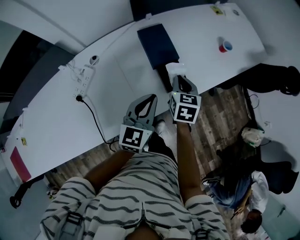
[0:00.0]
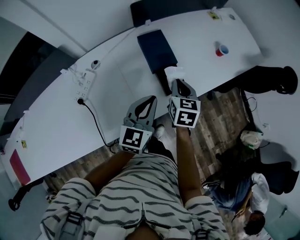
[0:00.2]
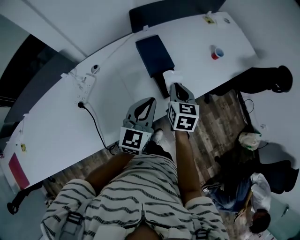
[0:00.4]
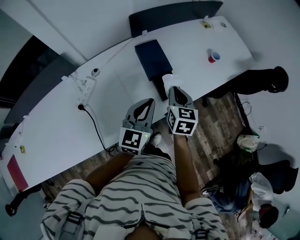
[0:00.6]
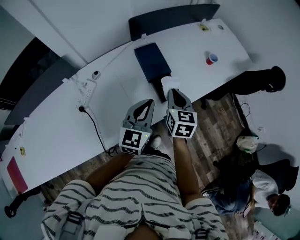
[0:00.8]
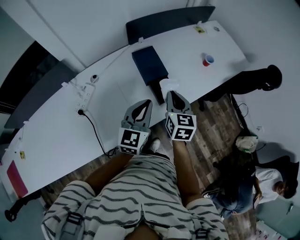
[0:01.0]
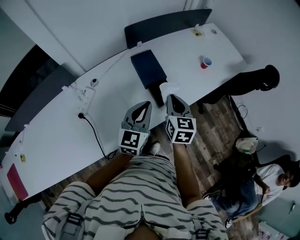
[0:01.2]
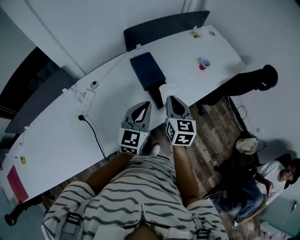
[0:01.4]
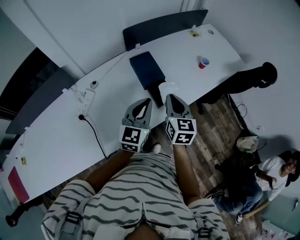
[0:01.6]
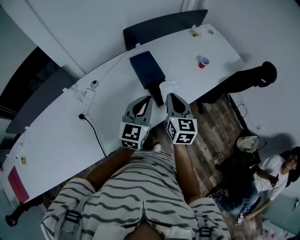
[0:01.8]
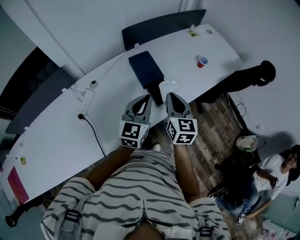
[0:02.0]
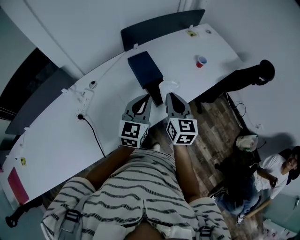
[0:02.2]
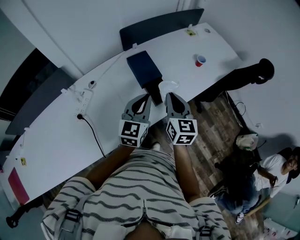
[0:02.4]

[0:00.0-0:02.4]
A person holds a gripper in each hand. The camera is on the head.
0.0 to 1.2 s: The left gripper travels upward by approximately 5 cm. The right gripper heads upward and backward, covering about 10 cm.
1.2 to 2.4 s: The grippers move only a little.

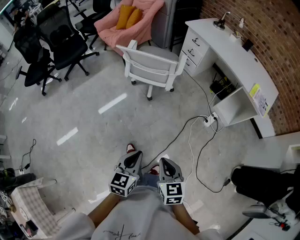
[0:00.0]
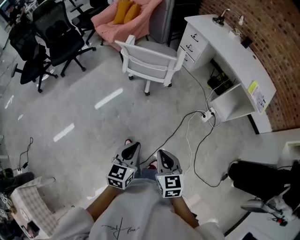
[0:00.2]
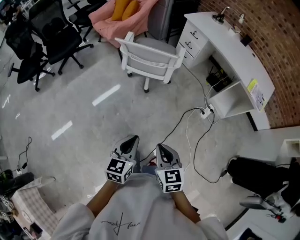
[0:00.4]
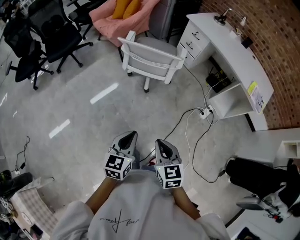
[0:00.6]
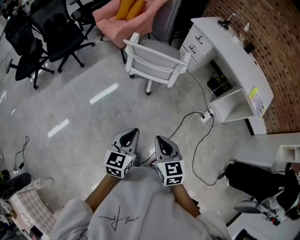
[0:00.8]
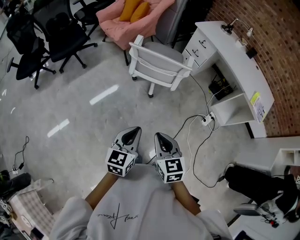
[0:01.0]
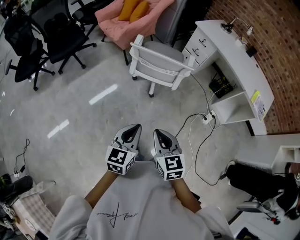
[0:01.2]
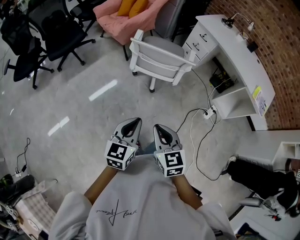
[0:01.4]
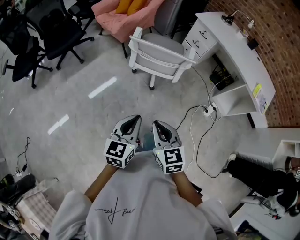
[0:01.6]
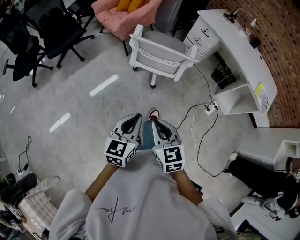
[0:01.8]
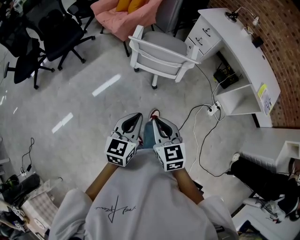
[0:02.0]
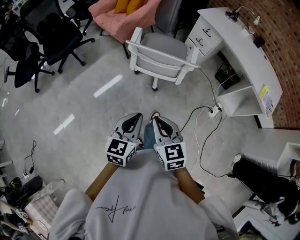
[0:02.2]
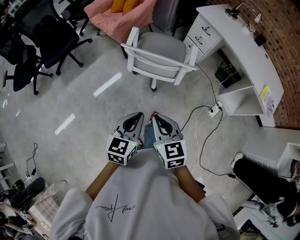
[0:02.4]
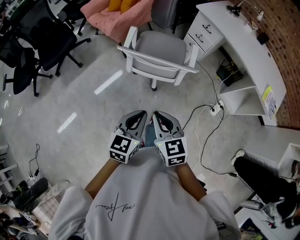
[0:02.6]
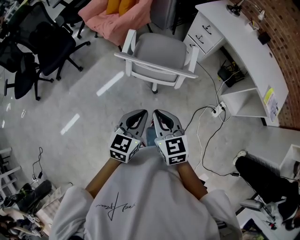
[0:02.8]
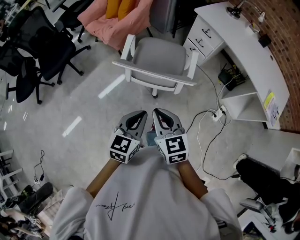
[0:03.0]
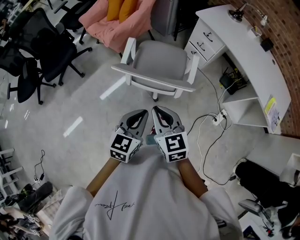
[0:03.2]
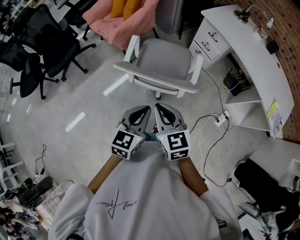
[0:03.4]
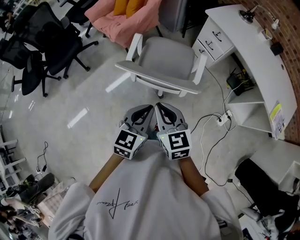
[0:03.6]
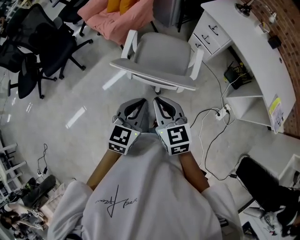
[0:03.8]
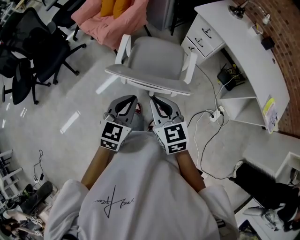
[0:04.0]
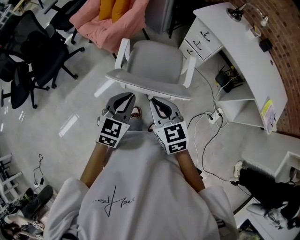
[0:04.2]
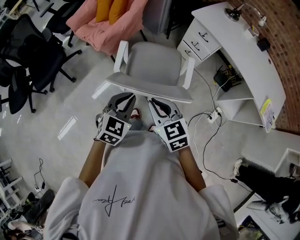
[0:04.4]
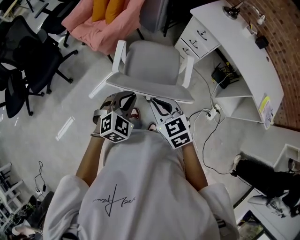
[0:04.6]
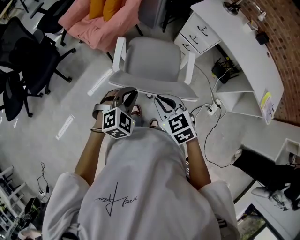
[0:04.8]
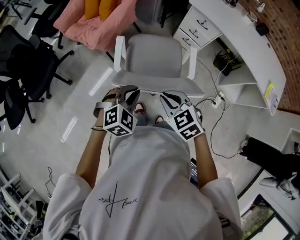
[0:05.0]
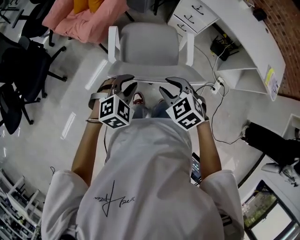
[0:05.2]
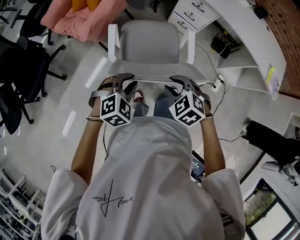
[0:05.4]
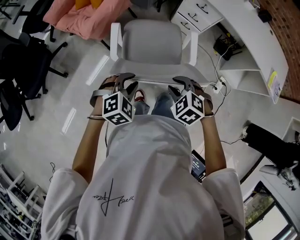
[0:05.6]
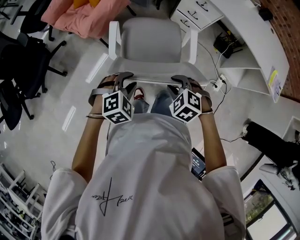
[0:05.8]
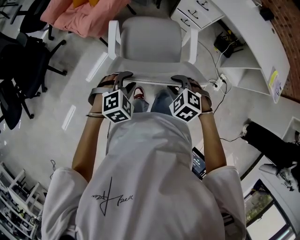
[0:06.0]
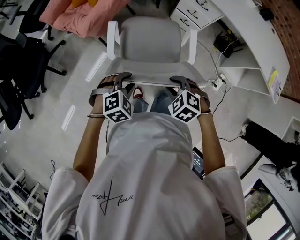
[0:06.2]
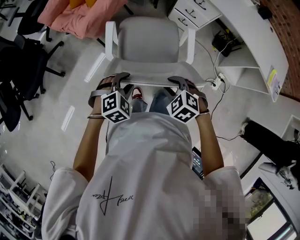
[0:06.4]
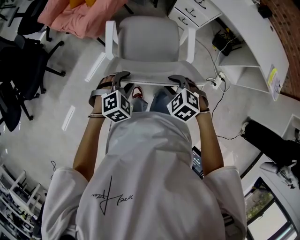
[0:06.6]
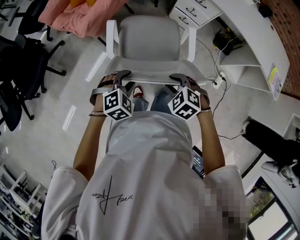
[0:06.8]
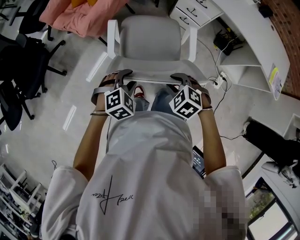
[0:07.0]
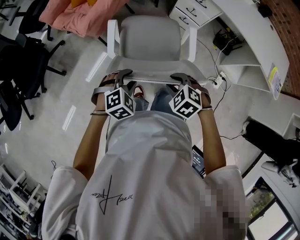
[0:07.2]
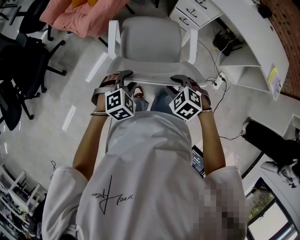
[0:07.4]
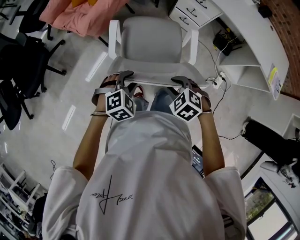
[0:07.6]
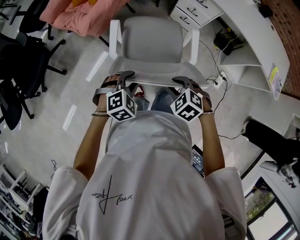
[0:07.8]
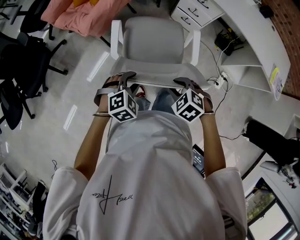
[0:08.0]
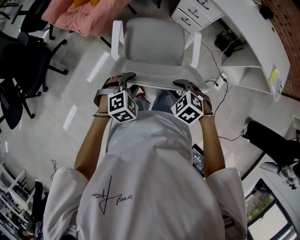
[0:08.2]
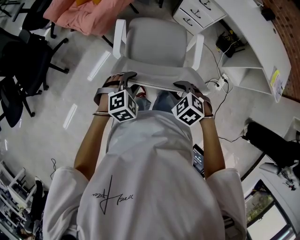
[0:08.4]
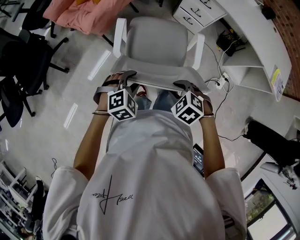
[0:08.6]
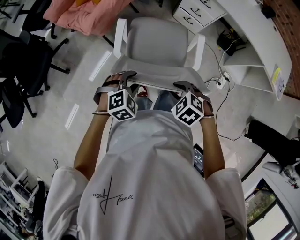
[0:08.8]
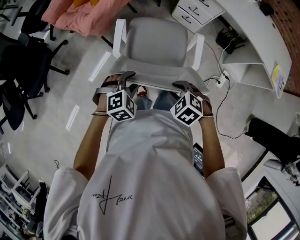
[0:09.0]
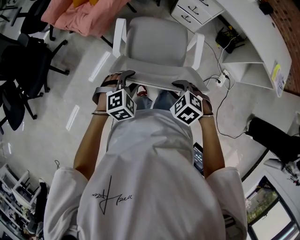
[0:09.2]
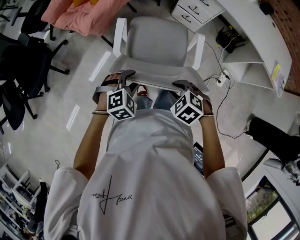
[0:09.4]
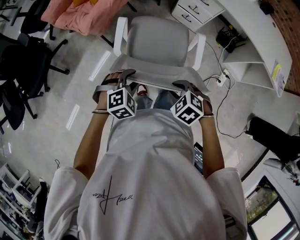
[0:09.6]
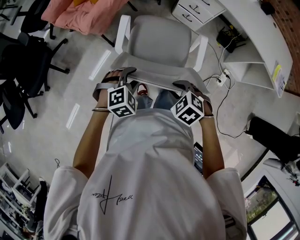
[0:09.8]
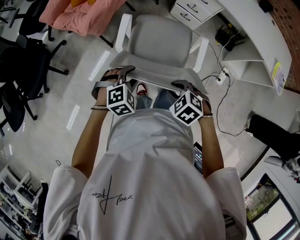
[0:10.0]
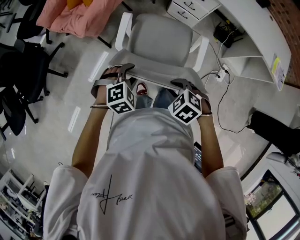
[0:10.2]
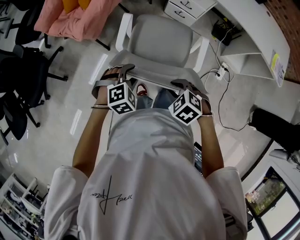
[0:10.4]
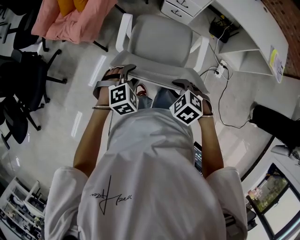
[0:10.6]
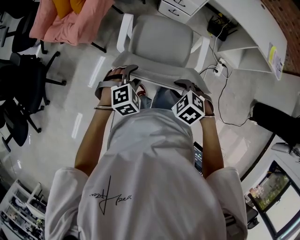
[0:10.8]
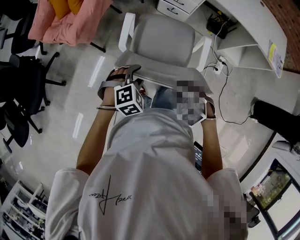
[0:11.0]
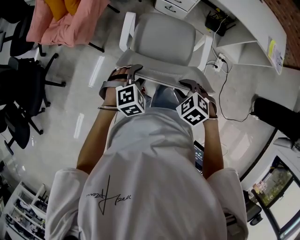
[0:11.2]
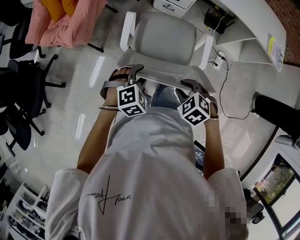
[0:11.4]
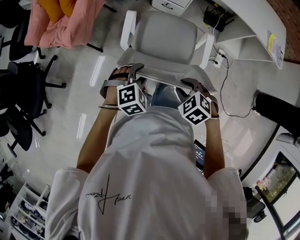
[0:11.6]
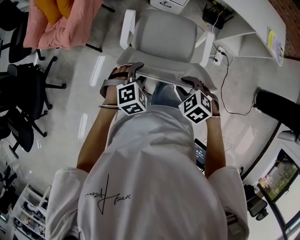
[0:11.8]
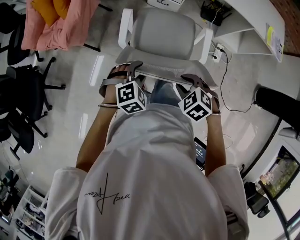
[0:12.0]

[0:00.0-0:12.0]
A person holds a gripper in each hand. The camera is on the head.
0.0 to 1.6 s: The right gripper travels to the left and forward by roughly 30 cm. Meanwhile the left gripper is displaced forward and to the left by roughly 25 cm.
1.6 to 3.0 s: The two grippers go about 25 cm forward.
3.0 to 4.4 s: The grippers both shift forward by approximately 15 cm. The left gripper swivels roughly 30 degrees.
4.4 to 6.0 s: Both grippers move downward, roughly 15 cm. The left gripper rotates approximately 40 degrees, and opens up. The right gripper points its fingers roughly 40 degrees further downward, and opens its fingers.
6.0 to 10.4 s: The grippers move only a little.
10.4 to 12.0 s: Both grippers move to the right, some 10 cm.

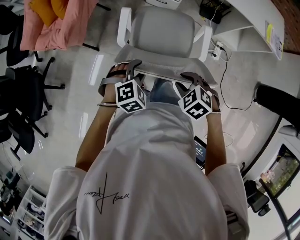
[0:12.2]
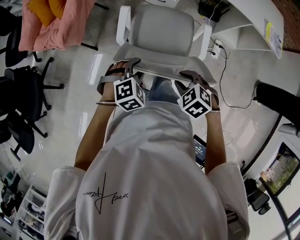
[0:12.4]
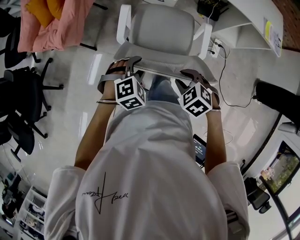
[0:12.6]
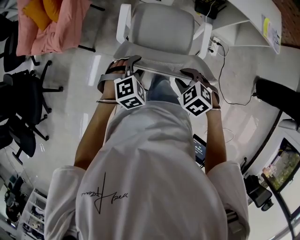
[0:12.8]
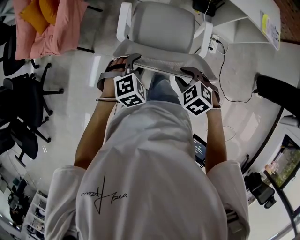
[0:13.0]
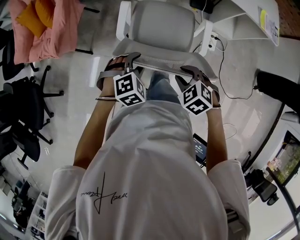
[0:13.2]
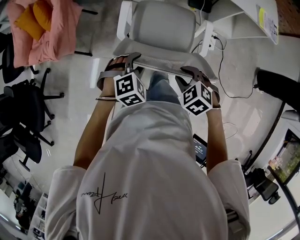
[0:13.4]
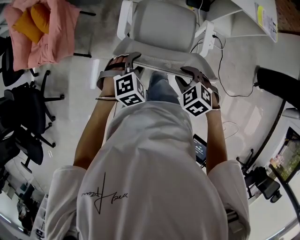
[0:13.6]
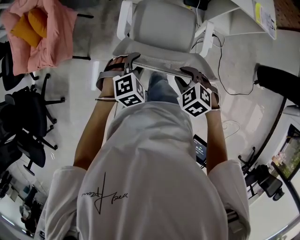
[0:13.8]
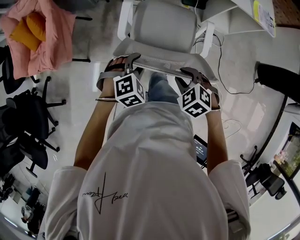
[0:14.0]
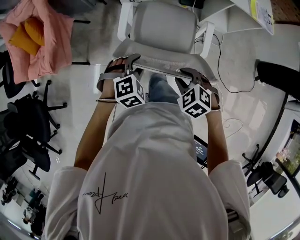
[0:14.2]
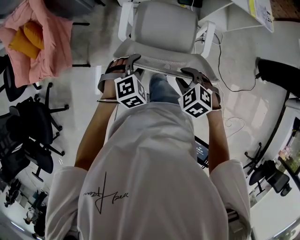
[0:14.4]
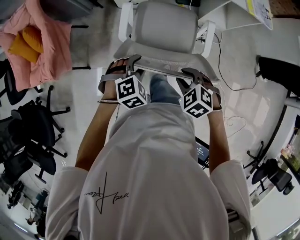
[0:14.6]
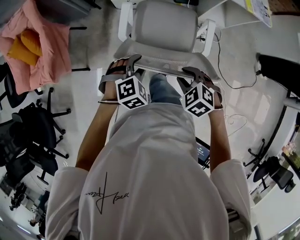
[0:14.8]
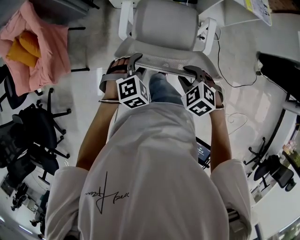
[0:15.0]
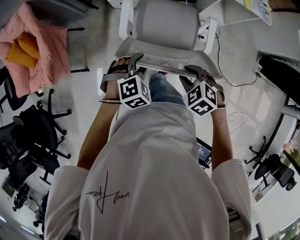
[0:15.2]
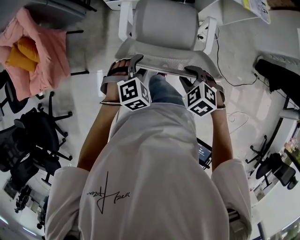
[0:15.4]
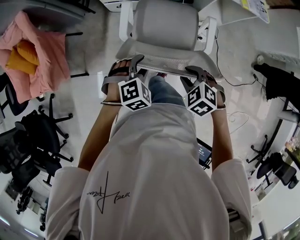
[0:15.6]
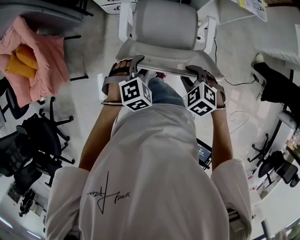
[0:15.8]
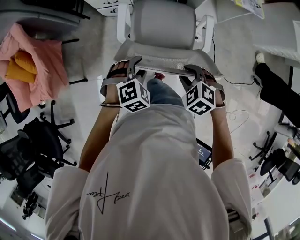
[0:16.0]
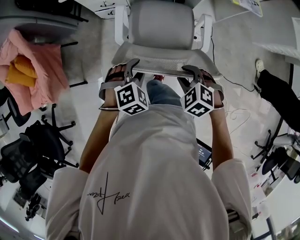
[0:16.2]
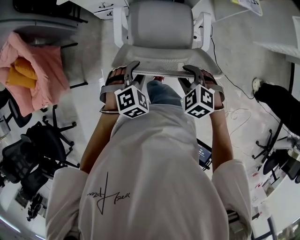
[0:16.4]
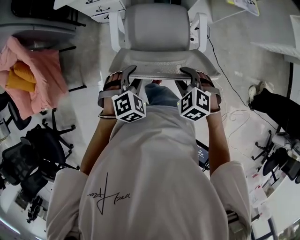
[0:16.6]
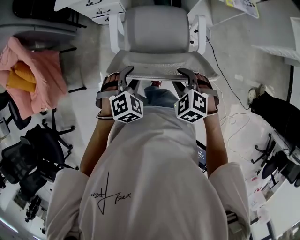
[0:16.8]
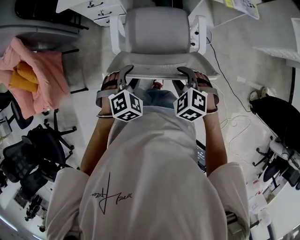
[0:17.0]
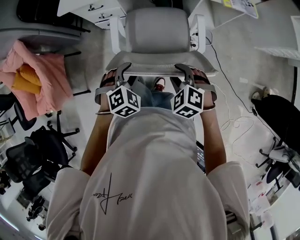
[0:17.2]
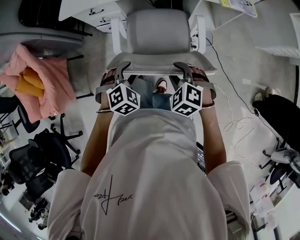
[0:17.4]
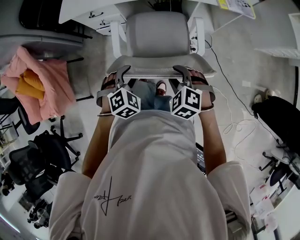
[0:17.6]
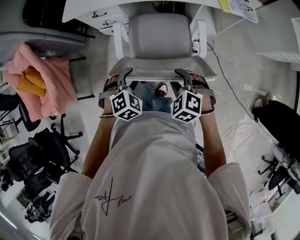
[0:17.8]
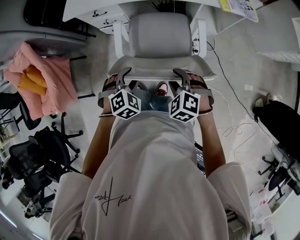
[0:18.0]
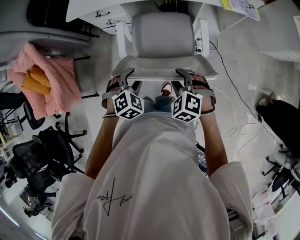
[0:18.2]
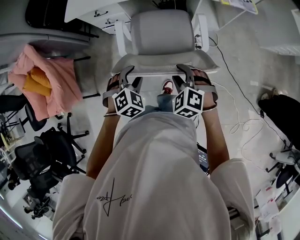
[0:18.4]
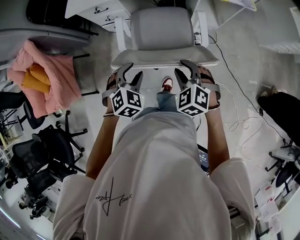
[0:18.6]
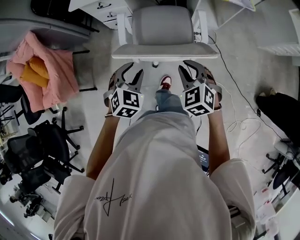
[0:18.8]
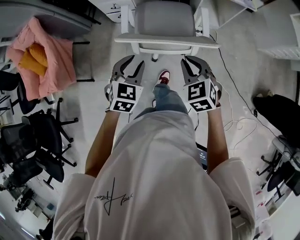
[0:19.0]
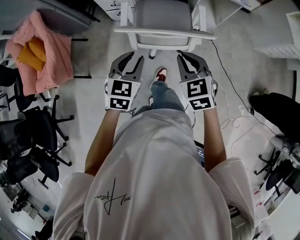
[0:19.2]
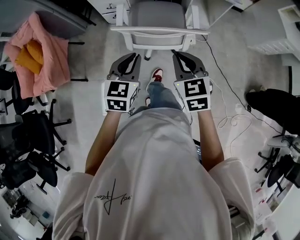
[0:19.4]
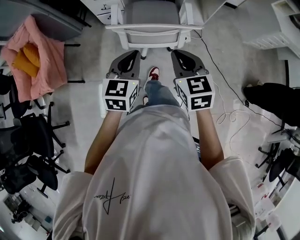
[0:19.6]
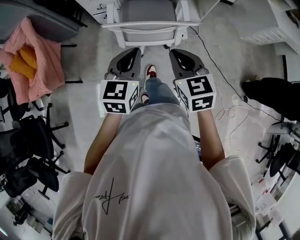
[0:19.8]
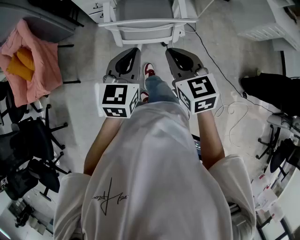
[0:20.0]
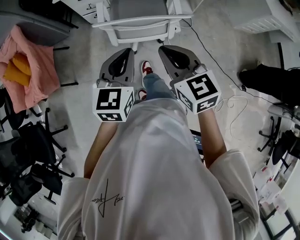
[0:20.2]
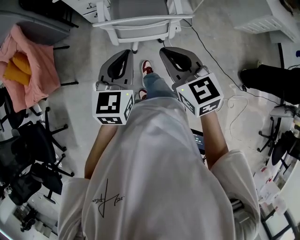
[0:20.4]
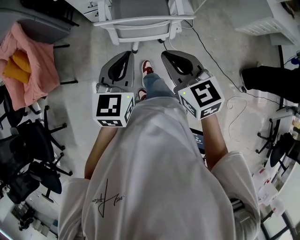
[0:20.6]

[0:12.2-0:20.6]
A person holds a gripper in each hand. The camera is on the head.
12.2 to 13.6 s: The two grippers go some 5 cm to the right.
13.6 to 15.0 s: Both grippers move to the right, roughly 5 cm.
15.0 to 16.4 s: The right gripper travels to the right and forward by about 10 cm, while the left gripper goes approximately 10 cm to the right.
16.4 to 17.8 s: The grippers stay close to where they were, moving slightly.
17.8 to 19.2 s: Both grippers travel together backward and upward, some 15 cm. The right gripper changes its angle by about 30 degrees, and closes up. The left gripper changes its angle by some 50 degrees.
19.2 to 20.6 s: The two grippers go about 10 cm upward and backward. The left gripper closes up.

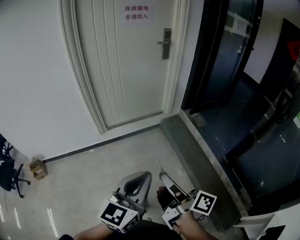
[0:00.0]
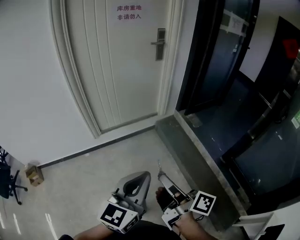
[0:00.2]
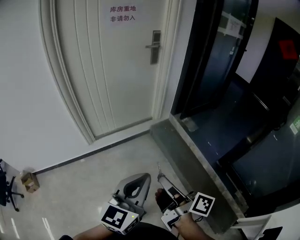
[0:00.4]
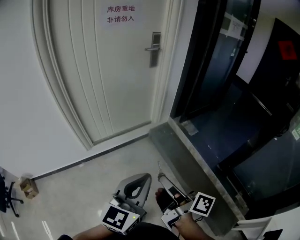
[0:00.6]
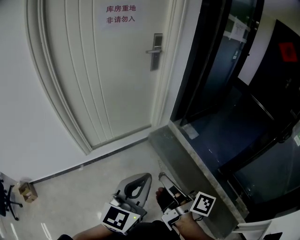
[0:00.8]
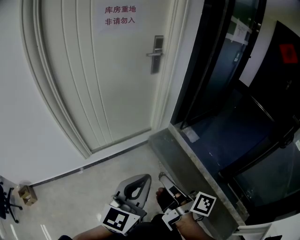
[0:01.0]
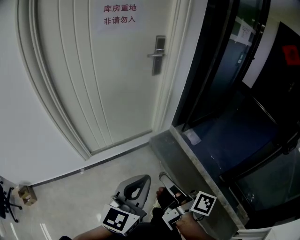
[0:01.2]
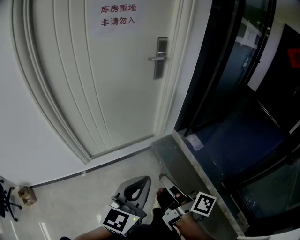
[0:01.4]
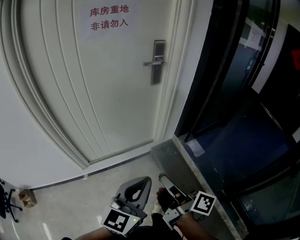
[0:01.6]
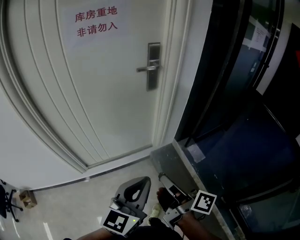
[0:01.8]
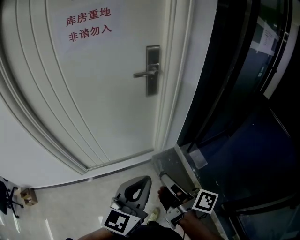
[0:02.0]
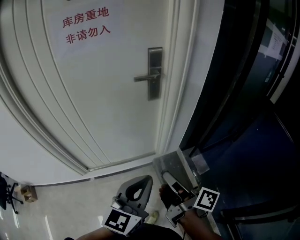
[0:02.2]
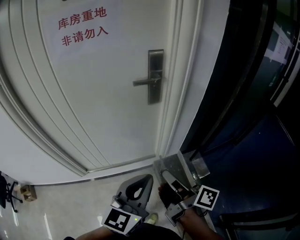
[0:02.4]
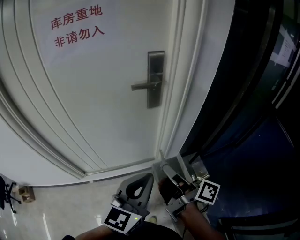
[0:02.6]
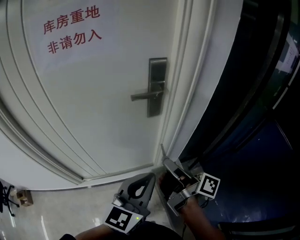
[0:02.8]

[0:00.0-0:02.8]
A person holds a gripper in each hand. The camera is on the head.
0.0 to 1.4 s: The left gripper moves roughly 35 cm.
1.4 to 2.8 s: The left gripper ends up roughly 40 cm from where it was.
